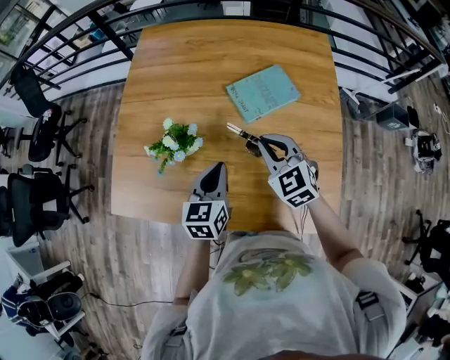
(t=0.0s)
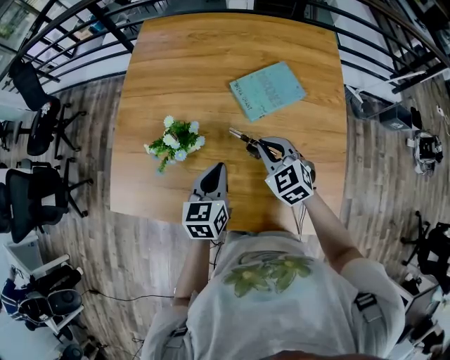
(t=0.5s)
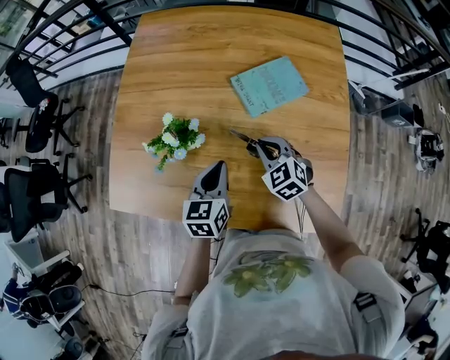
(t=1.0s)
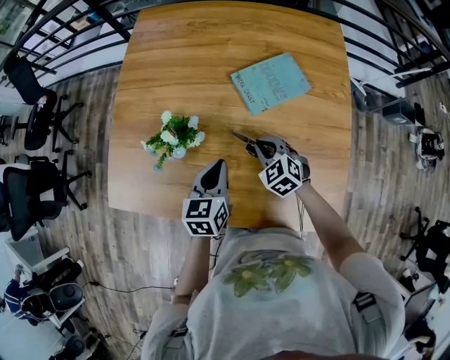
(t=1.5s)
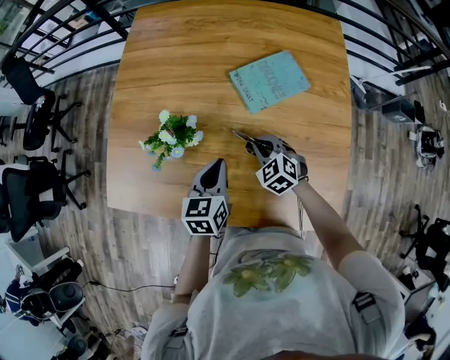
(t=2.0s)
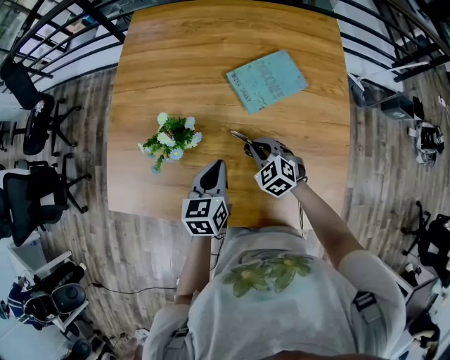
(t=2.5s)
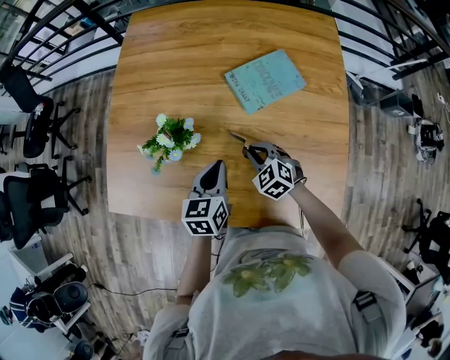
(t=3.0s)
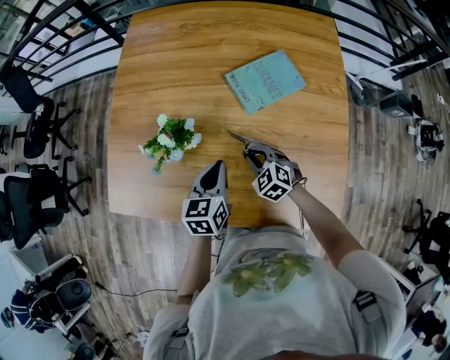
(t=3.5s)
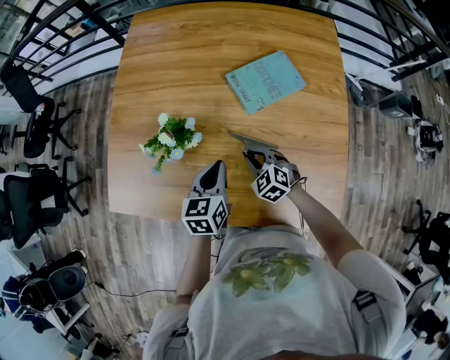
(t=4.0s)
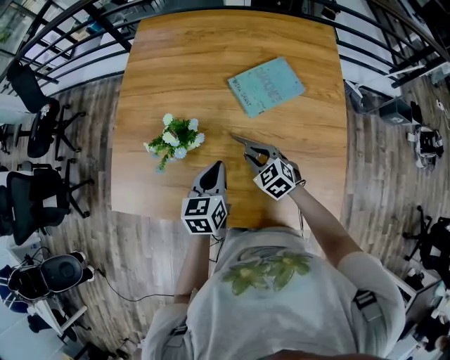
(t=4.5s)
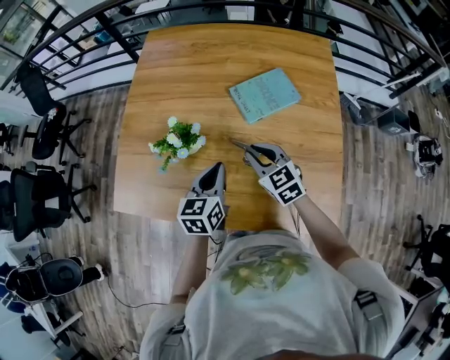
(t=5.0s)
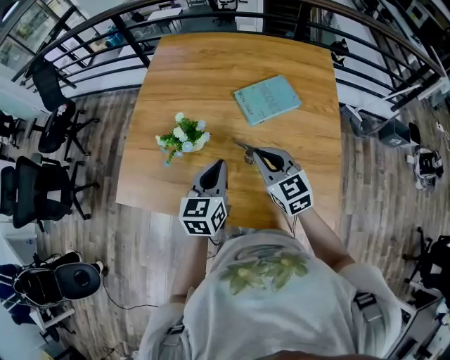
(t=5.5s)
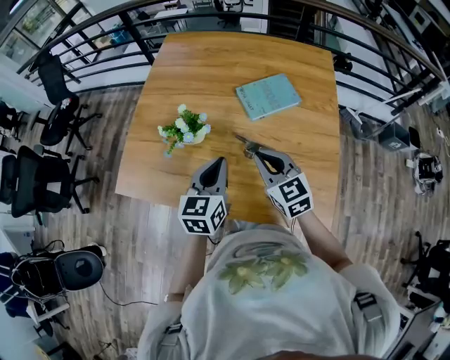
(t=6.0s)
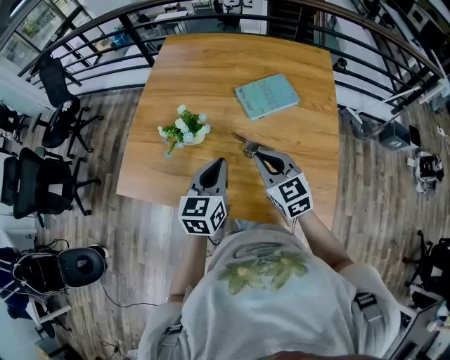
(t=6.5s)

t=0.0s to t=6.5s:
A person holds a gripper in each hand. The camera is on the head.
t=0.0s to t=2.0s: The left gripper changes place by some 5 cm. Meanwhile the right gripper goes roughly 15 cm downward.
t=2.0s to t=4.5s: The grippers move only a little.
t=4.5s to t=6.5s: The left gripper shifts about 10 cm upward and backward. The right gripper moves upward and backward, roughly 20 cm, changes its angle by about 30 degrees, and closes up.

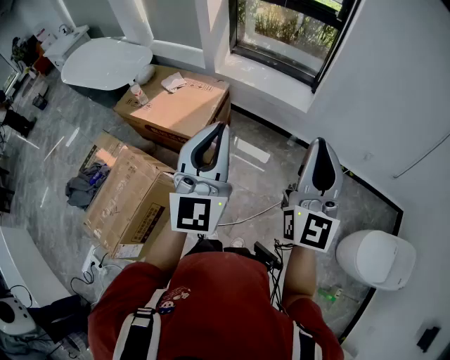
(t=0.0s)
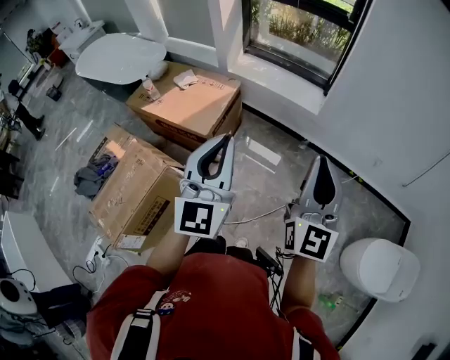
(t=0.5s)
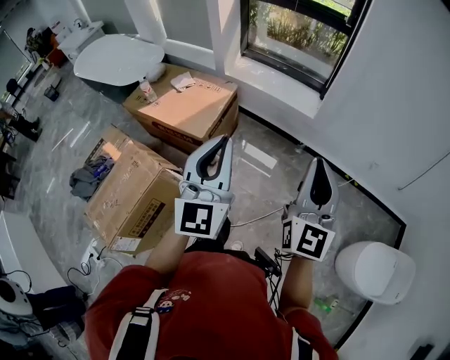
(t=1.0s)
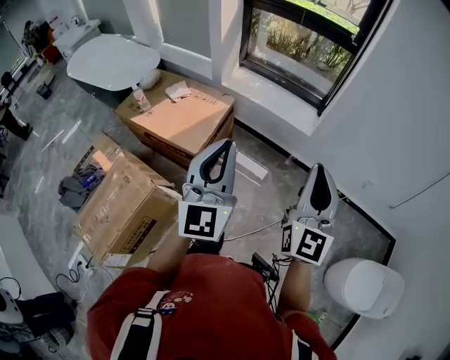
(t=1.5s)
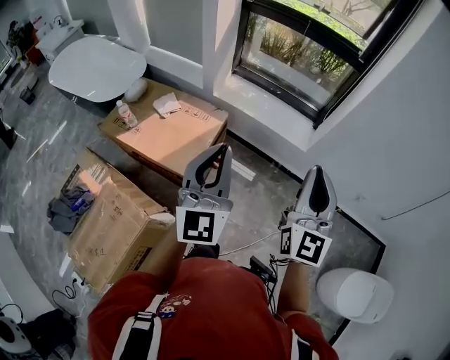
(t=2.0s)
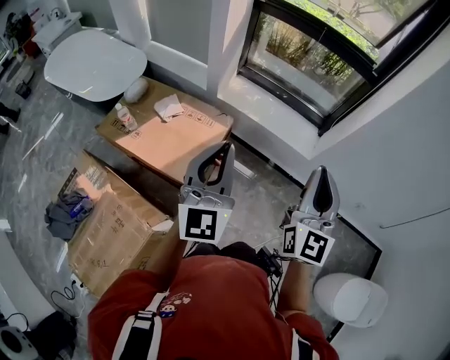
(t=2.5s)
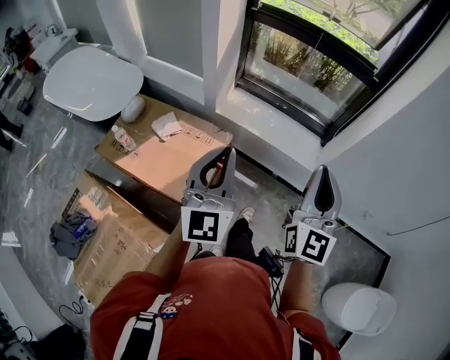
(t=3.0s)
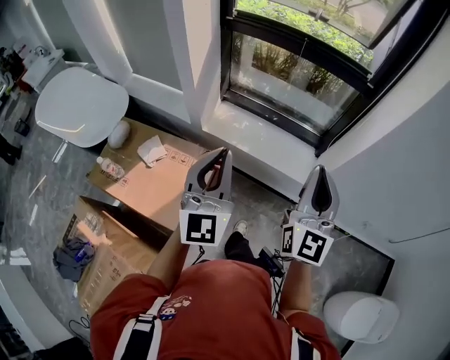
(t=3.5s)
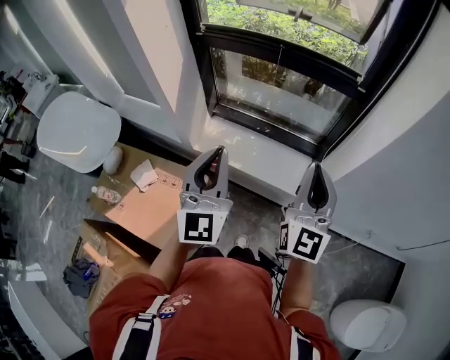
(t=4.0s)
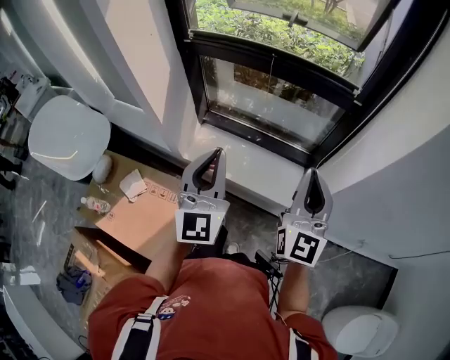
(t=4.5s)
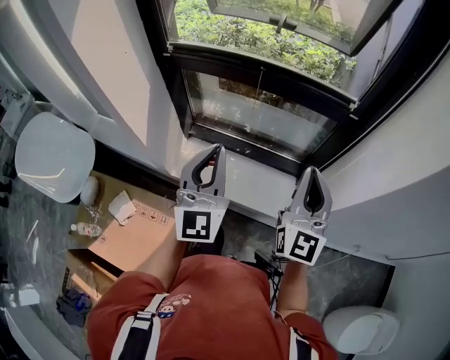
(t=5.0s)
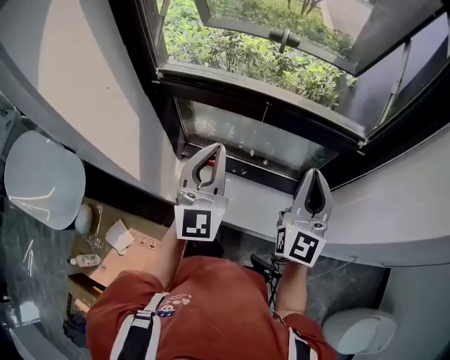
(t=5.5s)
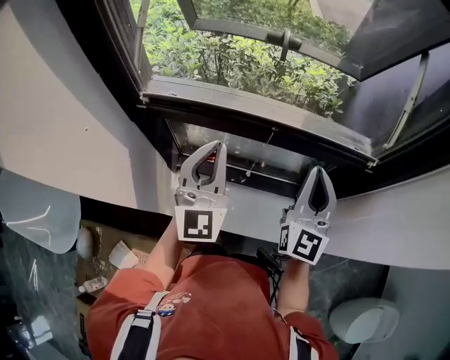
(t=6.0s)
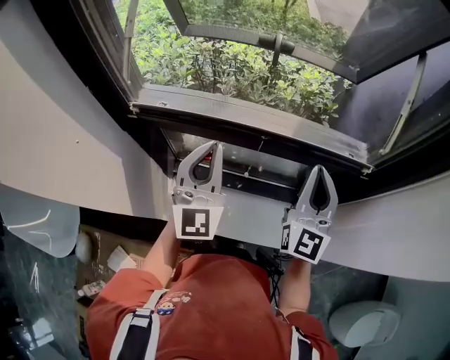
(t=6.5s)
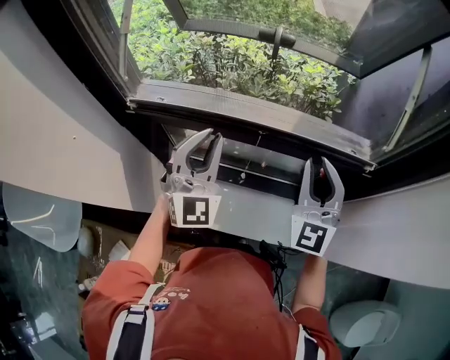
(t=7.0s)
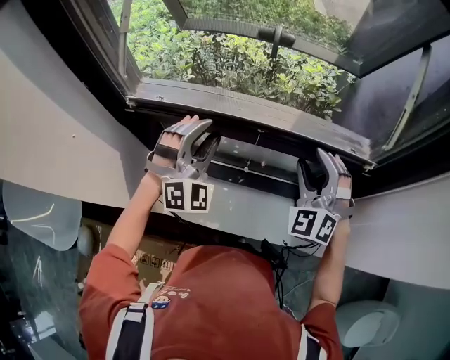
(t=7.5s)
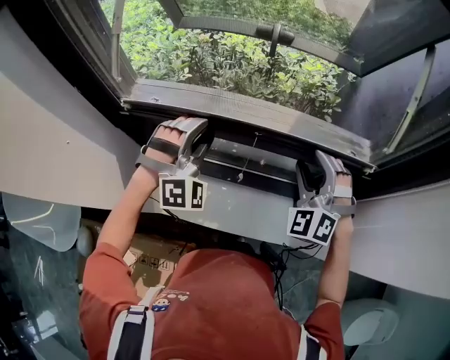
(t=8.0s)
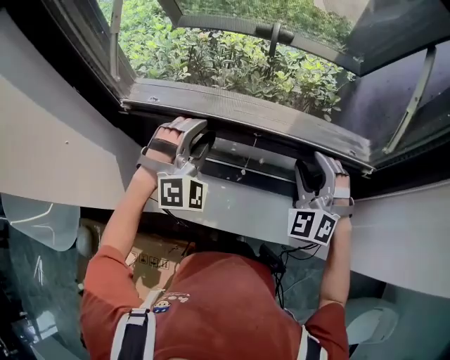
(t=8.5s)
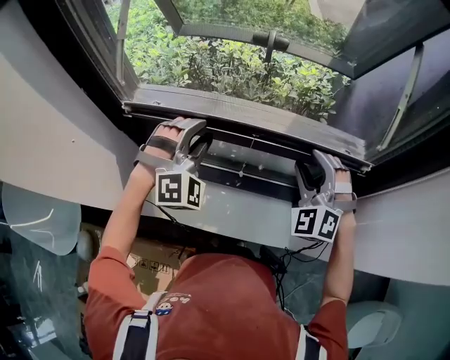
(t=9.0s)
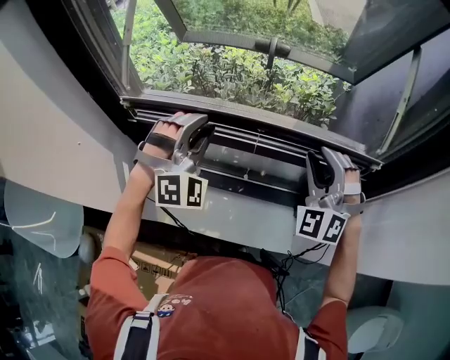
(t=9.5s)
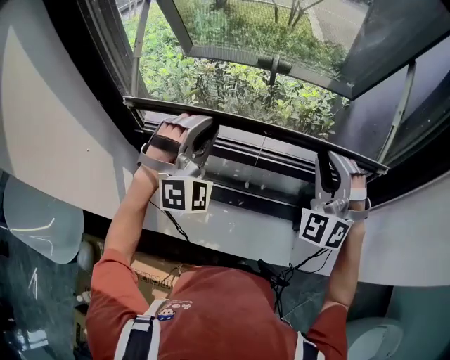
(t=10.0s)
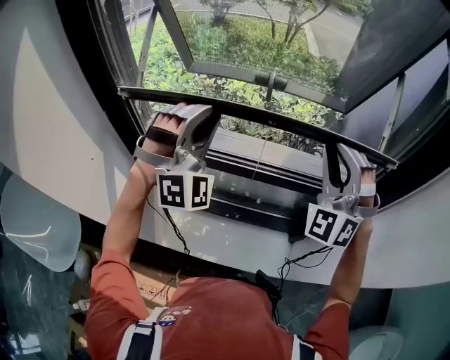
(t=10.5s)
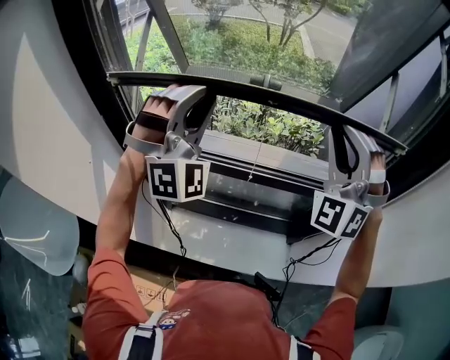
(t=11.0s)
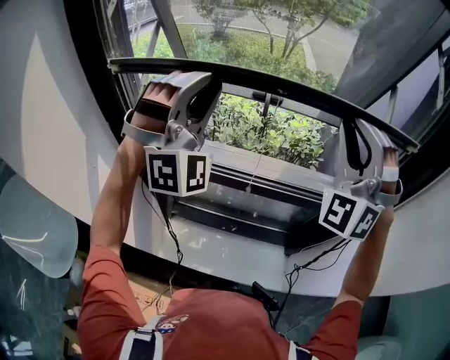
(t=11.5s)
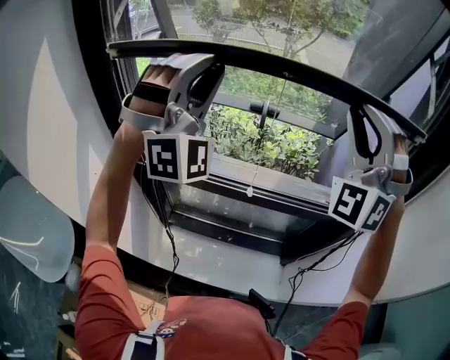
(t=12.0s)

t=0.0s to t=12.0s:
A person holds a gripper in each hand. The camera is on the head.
t=0.0s to t=2.0s: The two grippers go about 20 cm forward.
t=2.0s to t=4.0s: Both grippers travel together forward, about 35 cm.
t=4.0s to t=6.0s: The two grippers go roughly 35 cm forward.
t=6.0s to t=8.0s: Both grippers move forward and downward, about 10 cm. The left gripper rolls clockwise, seen from behind, by approximately 60 degrees, and opens up. Meanwhile the right gripper rotates around the line of its fingers by about 50 degrees, counterclockwise from behind, and opens its fingers.
t=8.0s to t=10.0s: The two grippers go roughly 10 cm upward. The left gripper closes up. Meanwhile the right gripper closes up.
t=10.0s to t=12.0s: Both grippers move upward, approximately 25 cm. The right gripper swivels some 20 degrees; the left gripper rotates approximately 30 degrees.

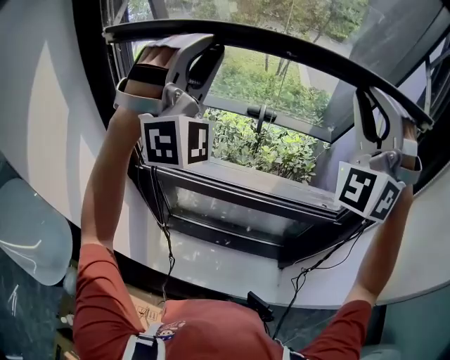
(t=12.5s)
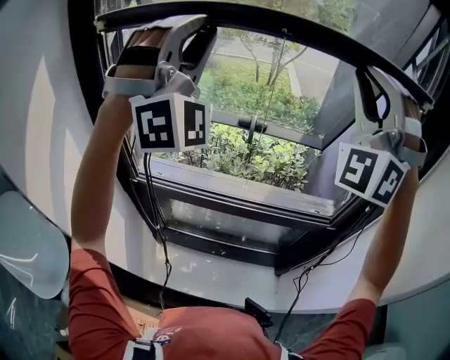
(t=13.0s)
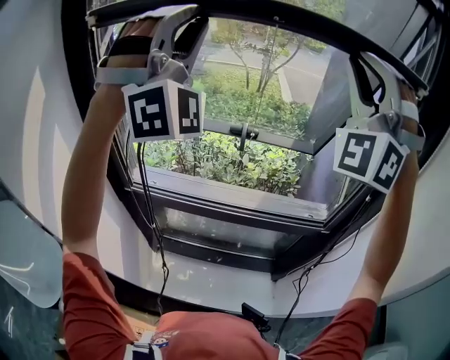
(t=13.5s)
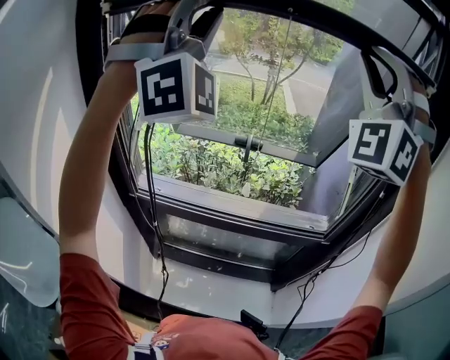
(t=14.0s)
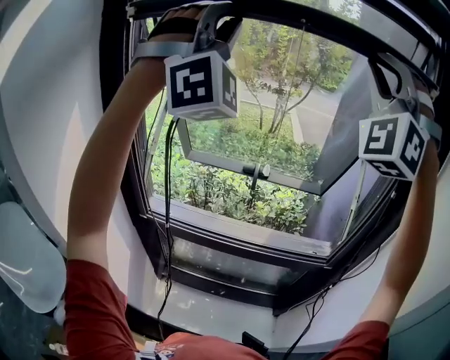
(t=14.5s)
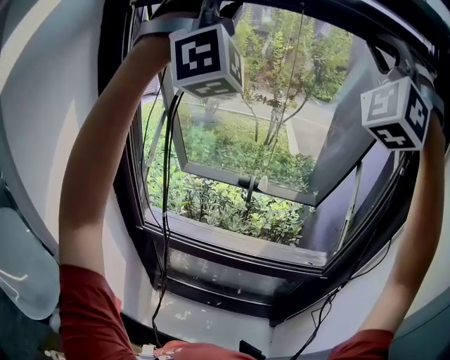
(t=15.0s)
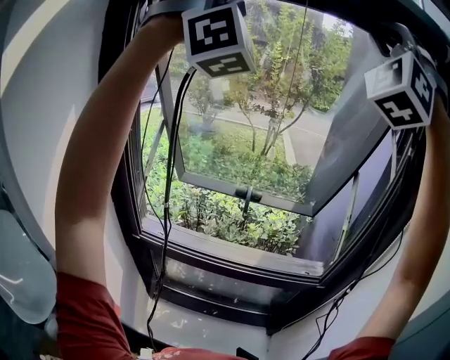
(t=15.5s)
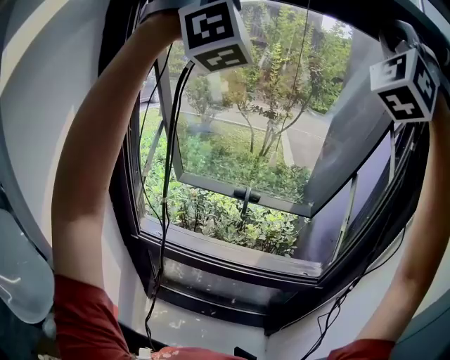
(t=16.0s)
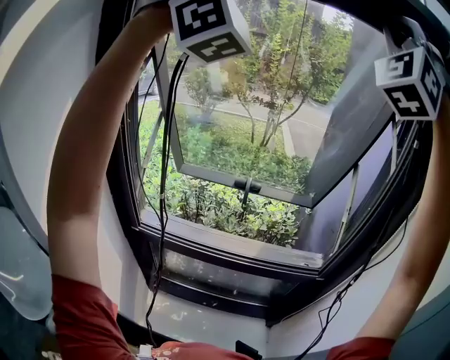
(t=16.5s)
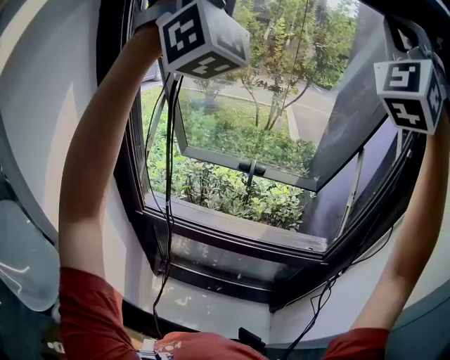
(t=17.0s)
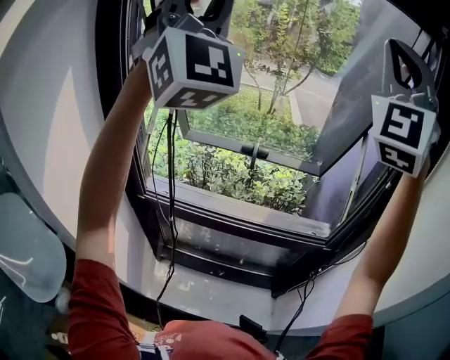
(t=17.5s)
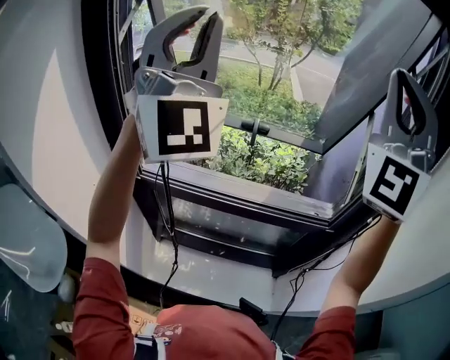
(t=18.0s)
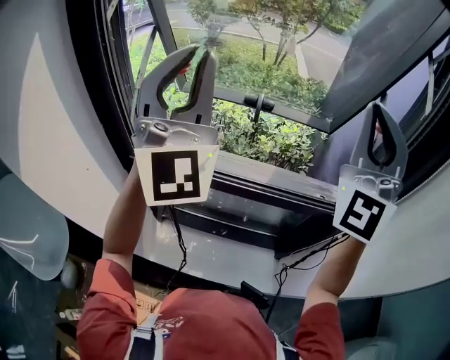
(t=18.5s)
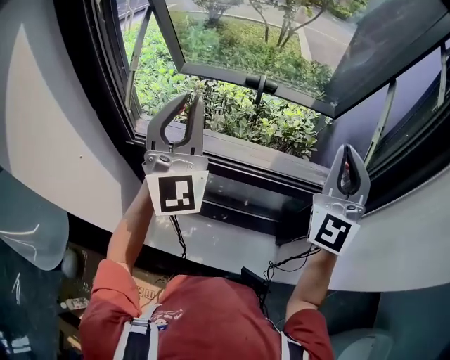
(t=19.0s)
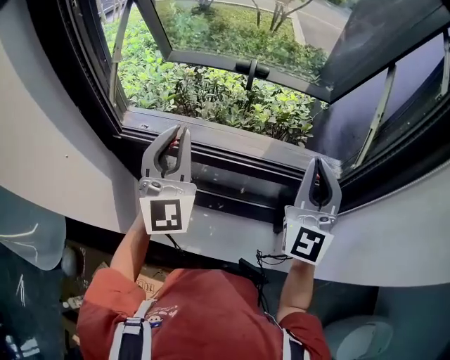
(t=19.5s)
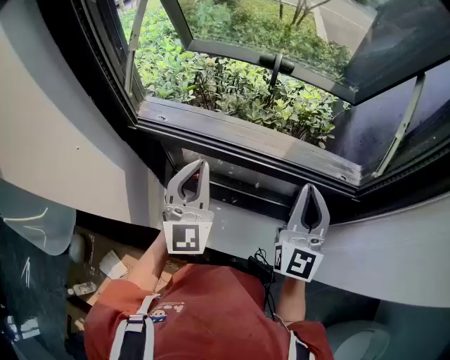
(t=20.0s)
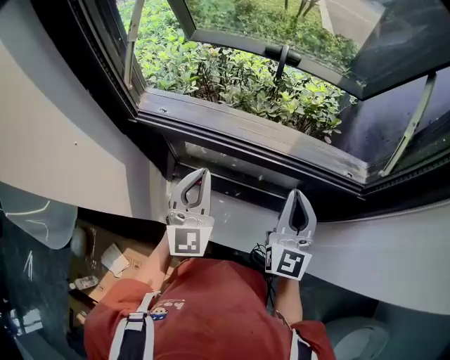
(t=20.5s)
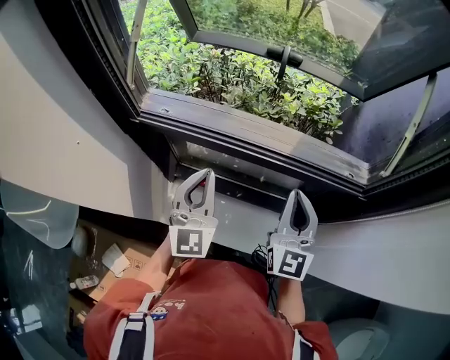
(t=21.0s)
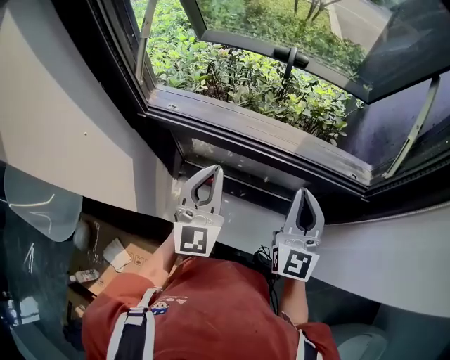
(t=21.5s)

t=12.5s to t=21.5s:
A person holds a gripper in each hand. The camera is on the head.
t=12.5s to t=14.5s: The two grippers go roughly 20 cm upward.
t=14.5s to t=17.0s: Both grippers move upward, some 10 cm.
t=17.0s to t=19.5s: The grippers both shift downward by roughly 50 cm. The left gripper rolls counterclockwise, seen from behind, by approximately 50 degrees, while the right gripper rolls clockwise, seen from behind, by approximately 60 degrees.
t=19.5s to t=21.5s: Both grippers move downward, roughly 15 cm. The right gripper swivels about 20 degrees.
